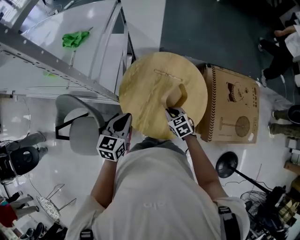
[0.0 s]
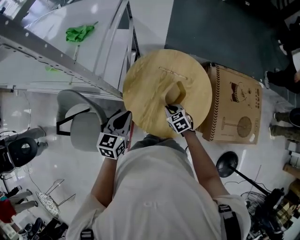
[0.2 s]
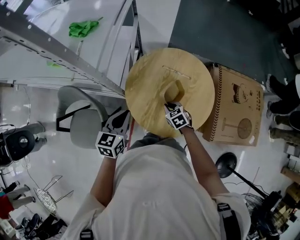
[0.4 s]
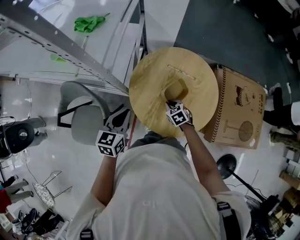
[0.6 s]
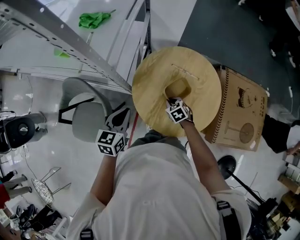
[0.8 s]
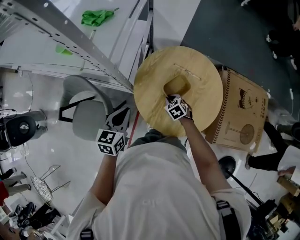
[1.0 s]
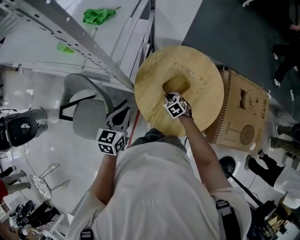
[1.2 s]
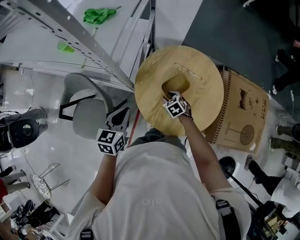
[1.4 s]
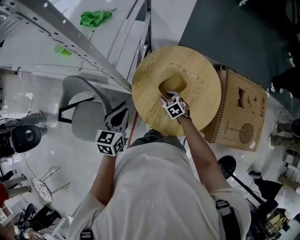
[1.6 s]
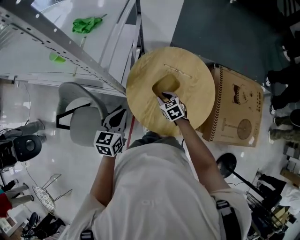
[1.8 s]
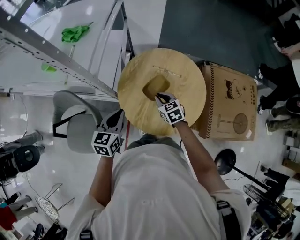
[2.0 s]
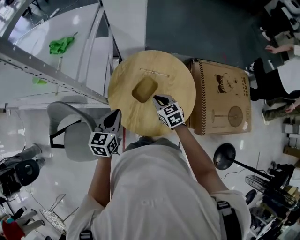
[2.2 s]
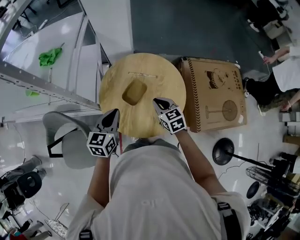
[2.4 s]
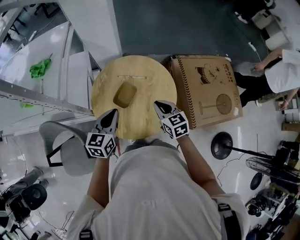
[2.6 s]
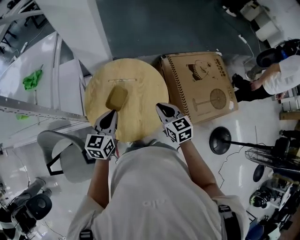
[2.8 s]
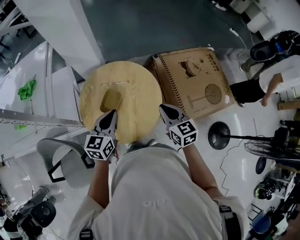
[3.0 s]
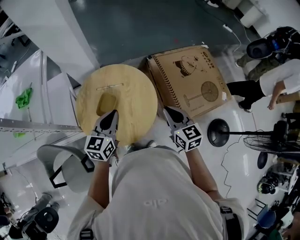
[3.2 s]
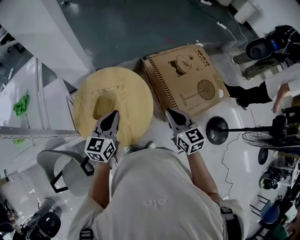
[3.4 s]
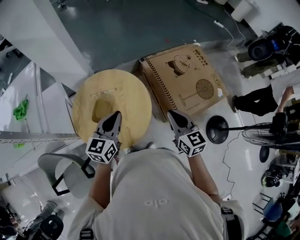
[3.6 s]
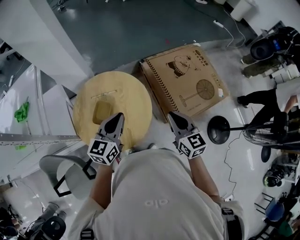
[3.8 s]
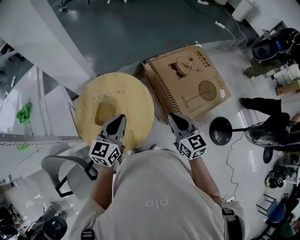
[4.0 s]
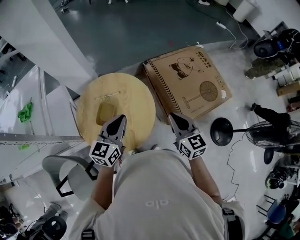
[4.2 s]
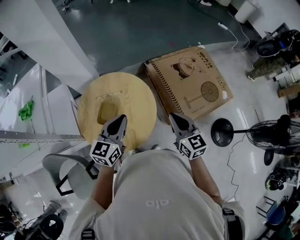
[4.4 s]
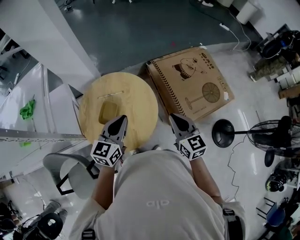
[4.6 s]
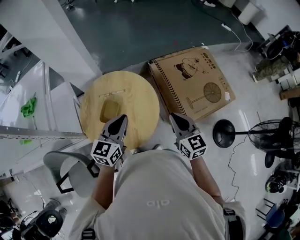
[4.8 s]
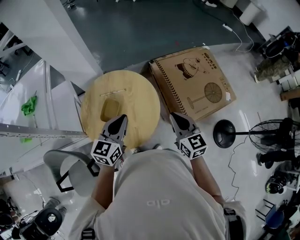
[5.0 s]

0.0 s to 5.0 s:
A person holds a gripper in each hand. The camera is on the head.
0.0 to 1.6 s: The right gripper heads to the left, downward and forward, covering about 15 cm, and opens its fingers, while the left gripper heads to the left, covering roughly 10 cm.
1.6 to 3.4 s: The left gripper changes place by roughly 35 cm, and rotates roughly 40 degrees. The right gripper ends up some 50 cm from where it was, tips its fingers upward by about 40 degrees, and closes up.
3.4 to 5.0 s: The grippers make only small movements.

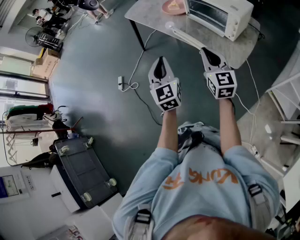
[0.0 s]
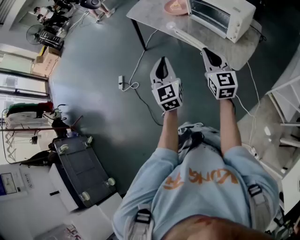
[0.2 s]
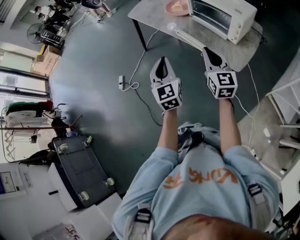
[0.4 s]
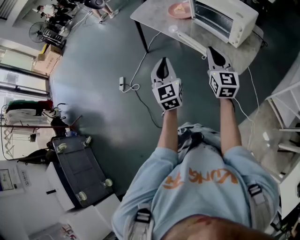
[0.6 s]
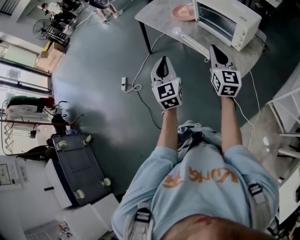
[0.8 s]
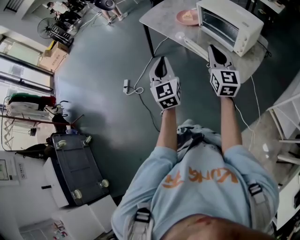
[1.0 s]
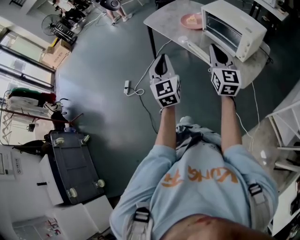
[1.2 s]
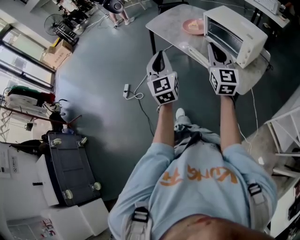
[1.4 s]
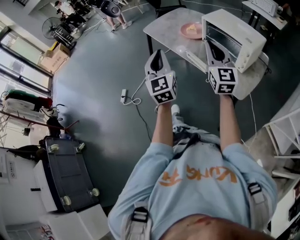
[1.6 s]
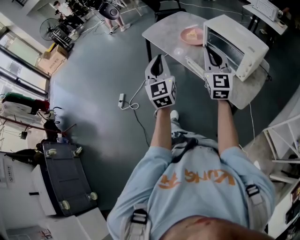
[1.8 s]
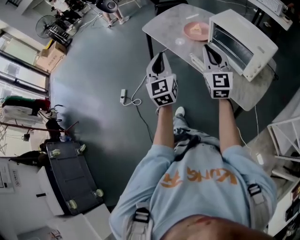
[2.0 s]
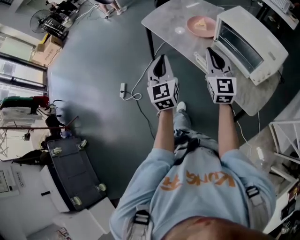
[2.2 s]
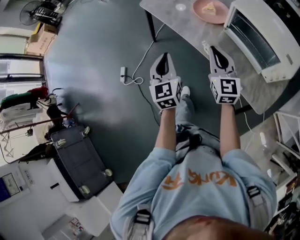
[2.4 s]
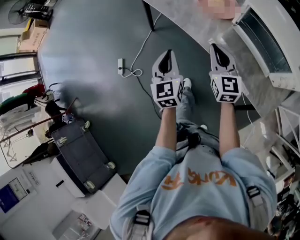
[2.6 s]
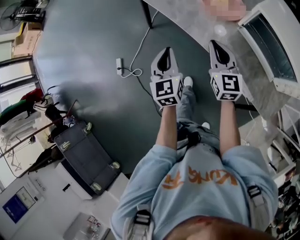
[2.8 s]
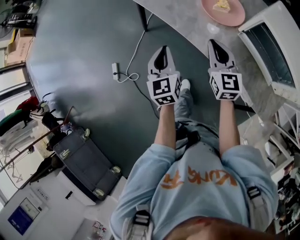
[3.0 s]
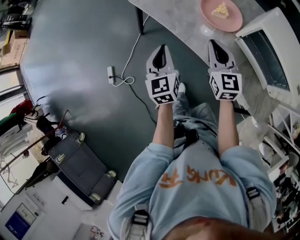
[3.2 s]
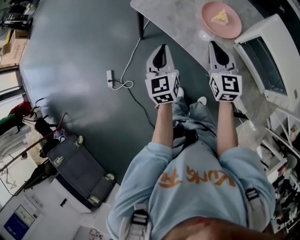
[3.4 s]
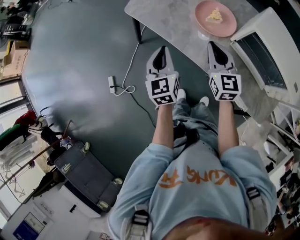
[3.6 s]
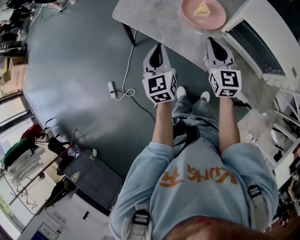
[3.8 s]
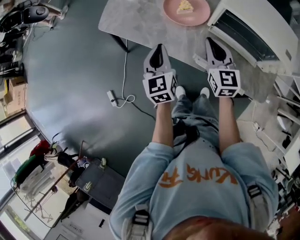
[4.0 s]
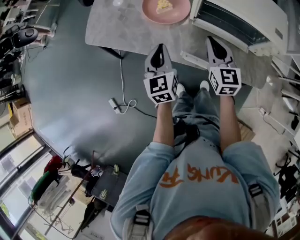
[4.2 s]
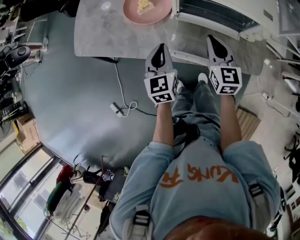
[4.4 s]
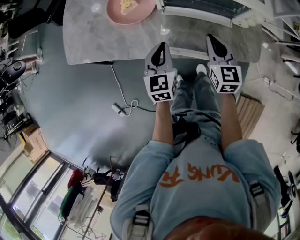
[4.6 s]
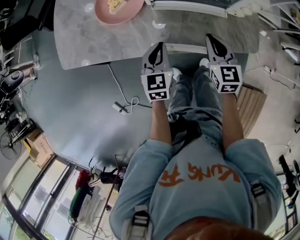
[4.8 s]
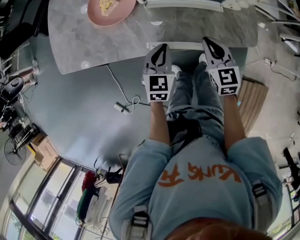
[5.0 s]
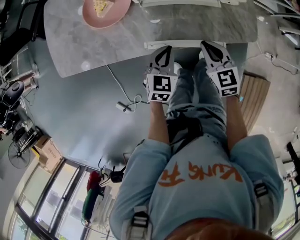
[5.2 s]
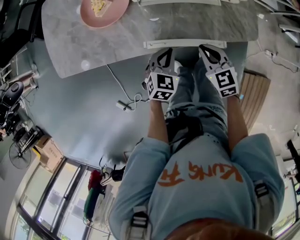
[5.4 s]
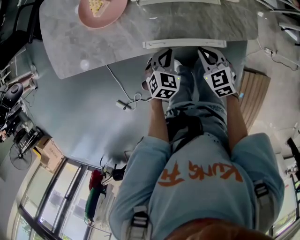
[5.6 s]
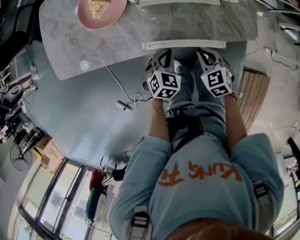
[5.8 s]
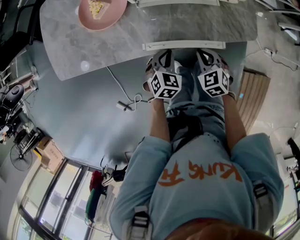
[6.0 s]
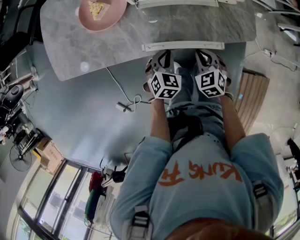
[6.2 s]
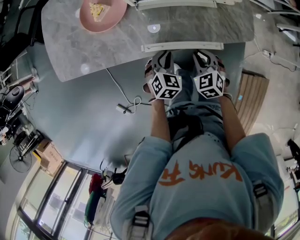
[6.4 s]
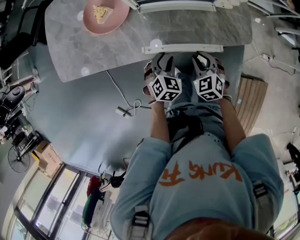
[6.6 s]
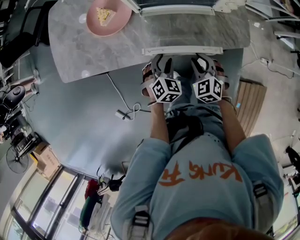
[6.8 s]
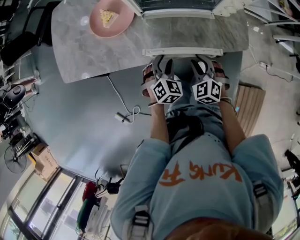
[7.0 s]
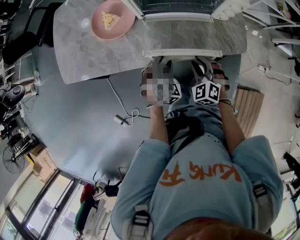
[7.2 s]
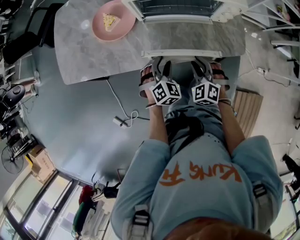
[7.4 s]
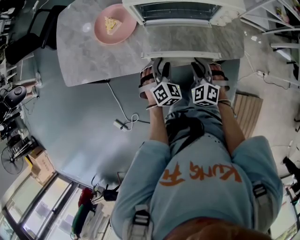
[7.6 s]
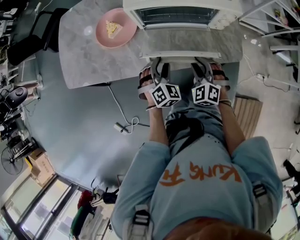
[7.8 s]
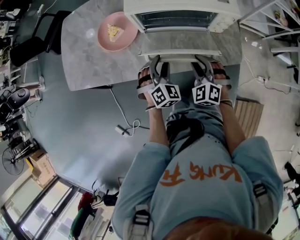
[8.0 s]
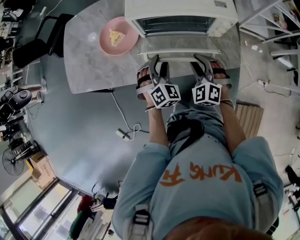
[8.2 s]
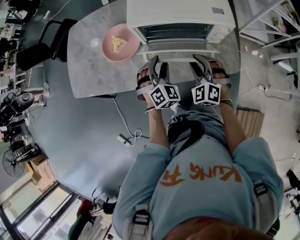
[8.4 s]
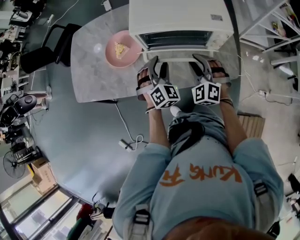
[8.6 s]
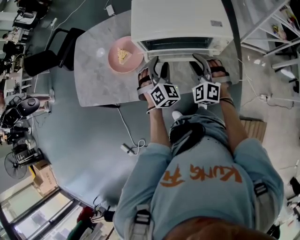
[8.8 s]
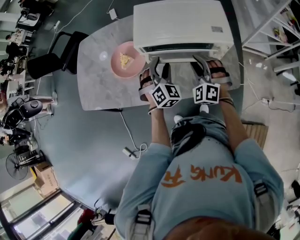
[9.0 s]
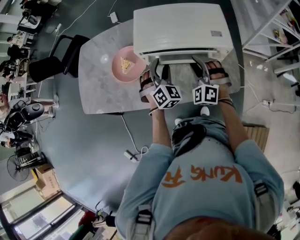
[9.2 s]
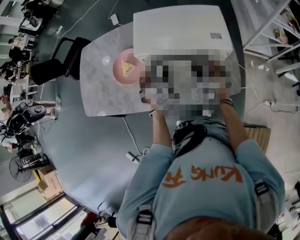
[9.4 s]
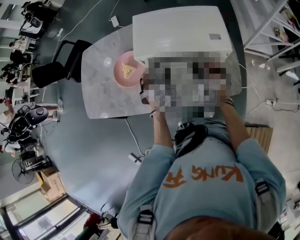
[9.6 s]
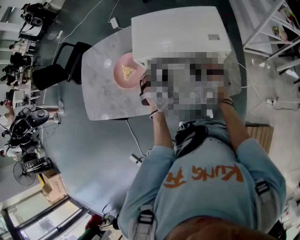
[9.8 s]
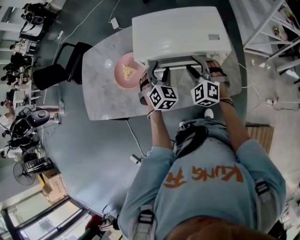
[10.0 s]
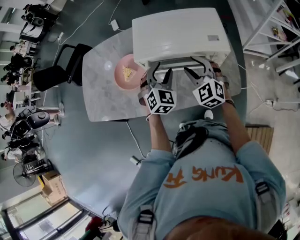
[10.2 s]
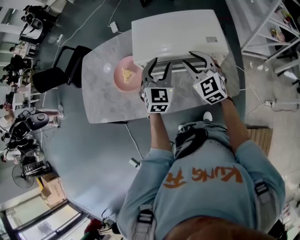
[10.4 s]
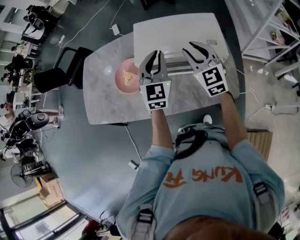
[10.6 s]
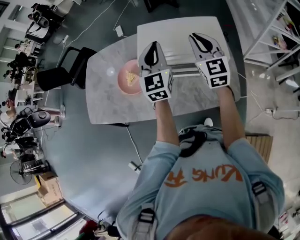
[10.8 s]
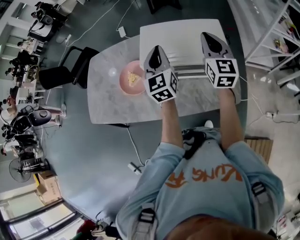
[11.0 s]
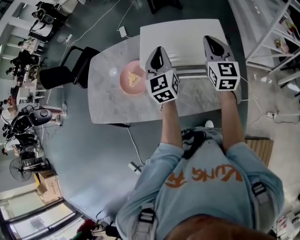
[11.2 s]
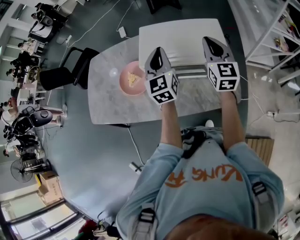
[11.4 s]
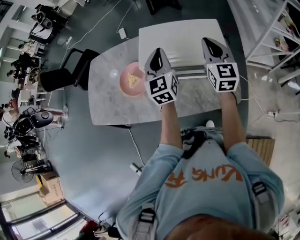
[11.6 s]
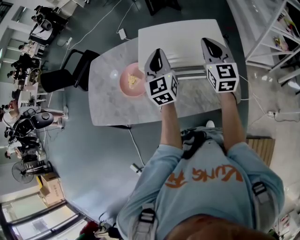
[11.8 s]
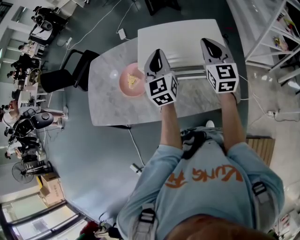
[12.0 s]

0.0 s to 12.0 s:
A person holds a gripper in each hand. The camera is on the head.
0.0 to 1.6 s: Both grippers travel together upward and forward, roughly 10 cm.
1.6 to 3.0 s: The pair of grippers is taken forward, about 40 cm. Both grippers move downward, roughly 25 cm. The left gripper swivels roughly 30 degrees, while the right gripper rotates about 30 degrees.
3.0 to 4.4 s: The left gripper shifts by roughly 25 cm, and changes its angle by approximately 40 degrees. The right gripper ends up about 25 cm from where it was, and turns by some 30 degrees.
4.4 to 6.0 s: The right gripper goes roughly 25 cm downward, backward and to the right, and angles its fingers downward, by approximately 30 degrees; the left gripper travels downward and to the right by about 20 cm, and points its fingers some 30 degrees further downward.
6.0 to 7.6 s: Both grippers travel together upward, roughly 5 cm. The left gripper swivels approximately 20 degrees, and opens, while the right gripper rotates roughly 30 degrees, and opens.
7.6 to 9.0 s: The grippers both shift forward and upward by approximately 20 cm. The right gripper swivels approximately 20 degrees.
9.0 to 10.4 s: The two grippers go some 10 cm upward. The right gripper swivels some 40 degrees. The left gripper rotates approximately 30 degrees.
10.4 to 12.0 s: The left gripper shifts some 10 cm upward, rotates roughly 30 degrees, and closes up. Meanwhile the right gripper heads upward and to the right, covering some 15 cm, changes its angle by about 30 degrees, and closes its fingers.

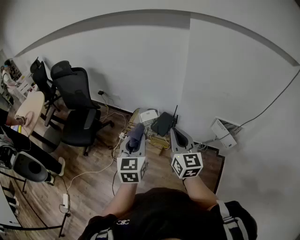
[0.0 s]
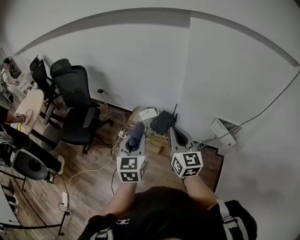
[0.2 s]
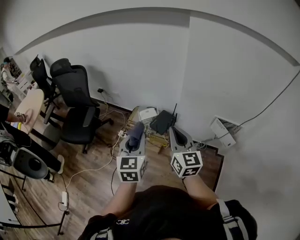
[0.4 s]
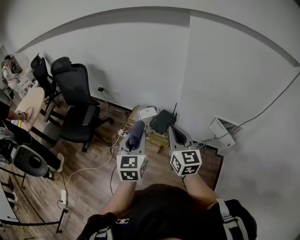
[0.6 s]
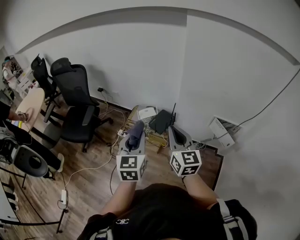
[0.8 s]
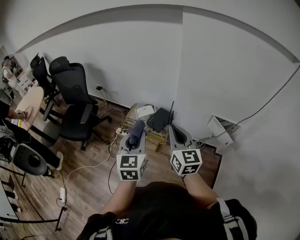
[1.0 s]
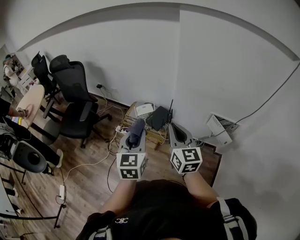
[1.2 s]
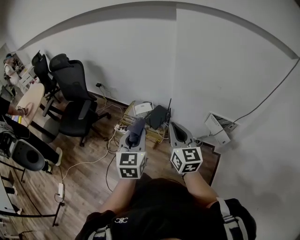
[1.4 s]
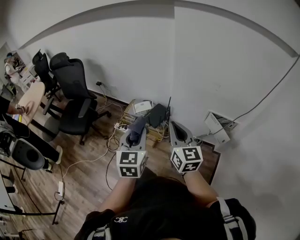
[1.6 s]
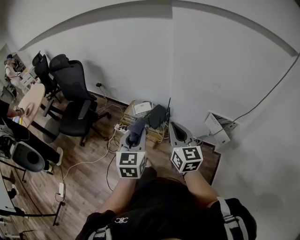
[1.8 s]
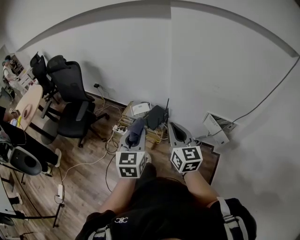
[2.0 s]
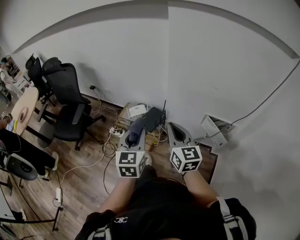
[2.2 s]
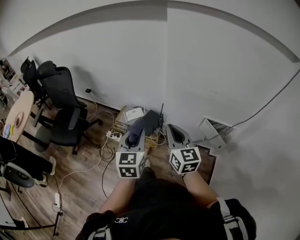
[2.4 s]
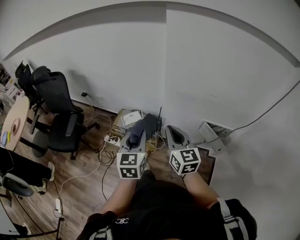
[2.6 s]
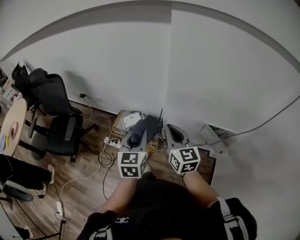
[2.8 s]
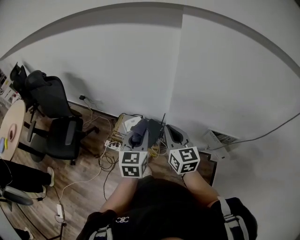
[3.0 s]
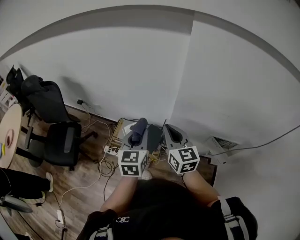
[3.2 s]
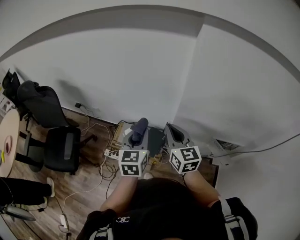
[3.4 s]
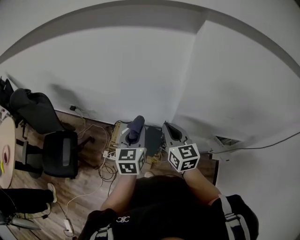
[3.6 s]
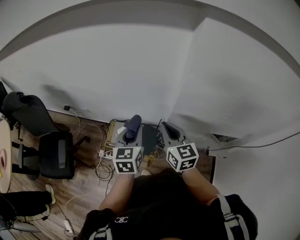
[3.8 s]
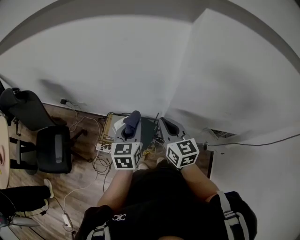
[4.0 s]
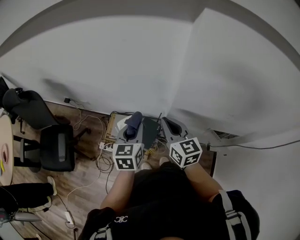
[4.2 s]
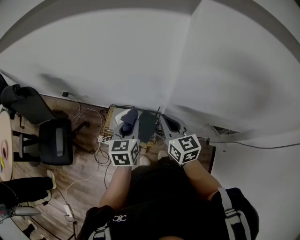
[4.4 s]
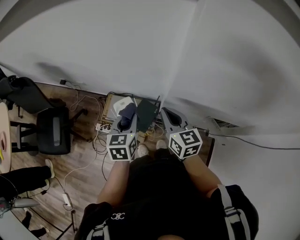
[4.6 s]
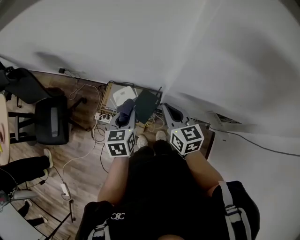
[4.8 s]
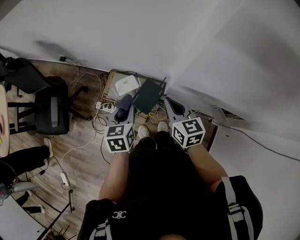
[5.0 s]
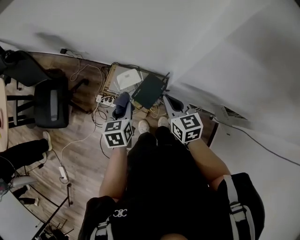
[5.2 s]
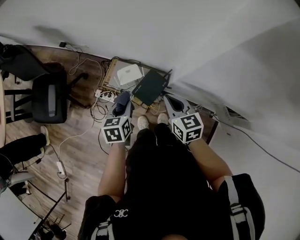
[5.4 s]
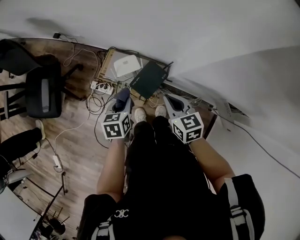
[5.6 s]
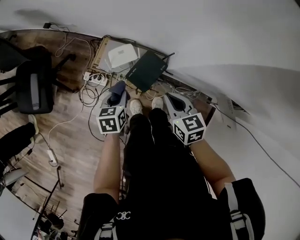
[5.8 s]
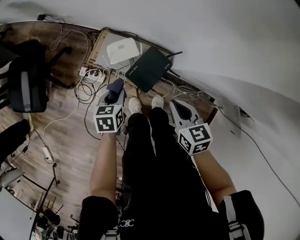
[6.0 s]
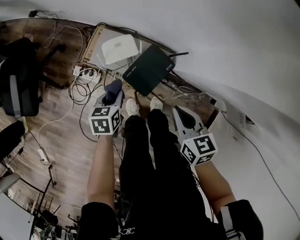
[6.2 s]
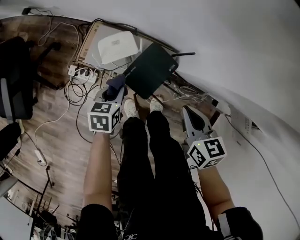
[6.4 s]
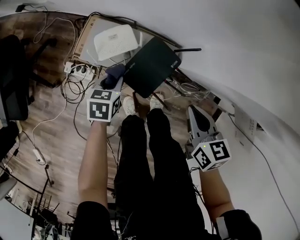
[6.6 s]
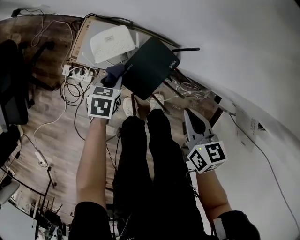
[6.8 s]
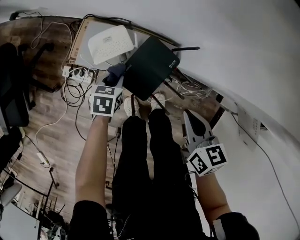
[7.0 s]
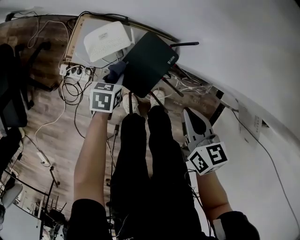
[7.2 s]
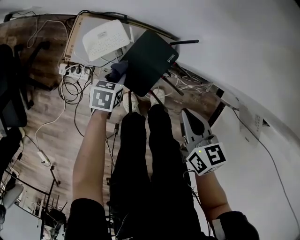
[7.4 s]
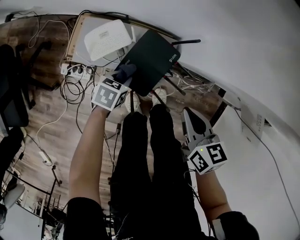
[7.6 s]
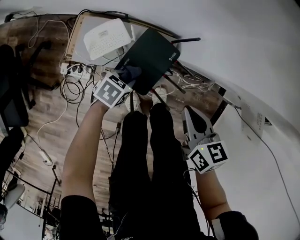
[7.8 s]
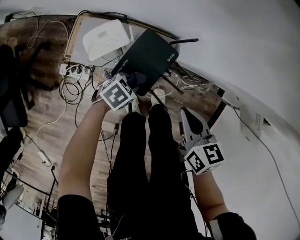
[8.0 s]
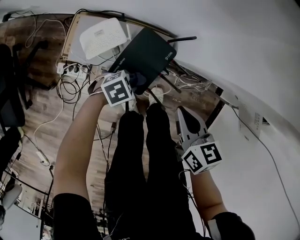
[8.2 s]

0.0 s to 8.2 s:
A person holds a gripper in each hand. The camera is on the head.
0.0 to 1.6 s: The two grippers go some 10 cm to the right.
1.6 to 3.2 s: The grippers both shift forward by some 25 cm.
3.2 to 5.0 s: Both grippers move downward and forward, some 20 cm. The left gripper swivels about 30 degrees; the right gripper changes its angle by roughly 20 degrees.
5.0 to 6.6 s: Both grippers move downward, roughly 35 cm. The left gripper changes its angle by some 20 degrees. The right gripper rotates roughly 20 degrees.
6.6 to 8.2 s: The left gripper moves some 15 cm, and rotates approximately 60 degrees.
